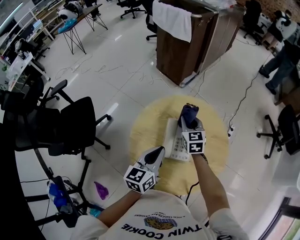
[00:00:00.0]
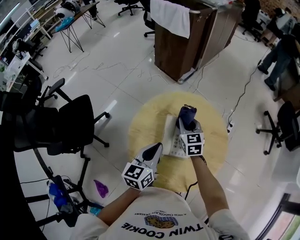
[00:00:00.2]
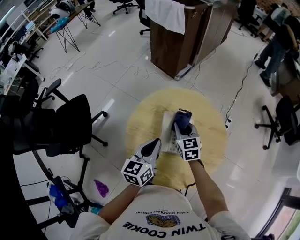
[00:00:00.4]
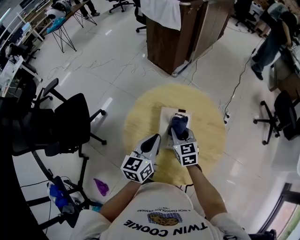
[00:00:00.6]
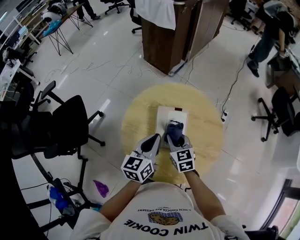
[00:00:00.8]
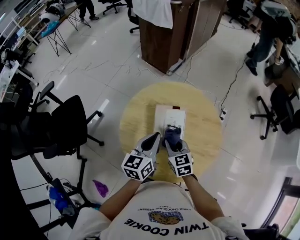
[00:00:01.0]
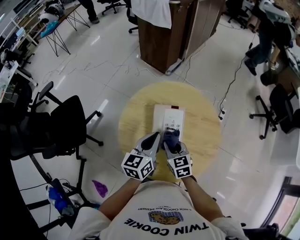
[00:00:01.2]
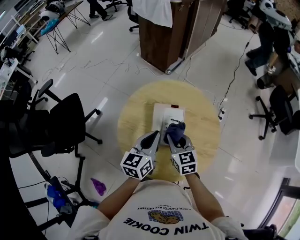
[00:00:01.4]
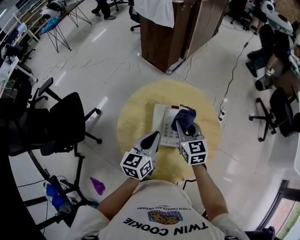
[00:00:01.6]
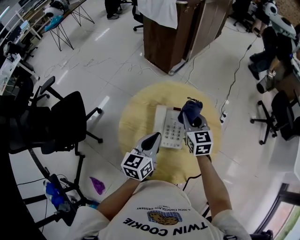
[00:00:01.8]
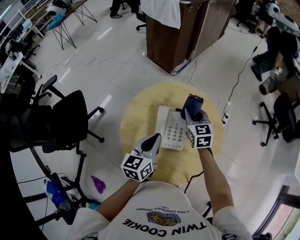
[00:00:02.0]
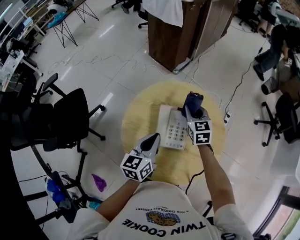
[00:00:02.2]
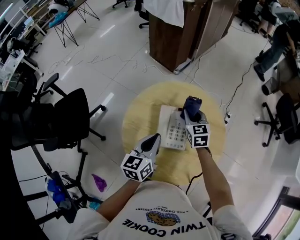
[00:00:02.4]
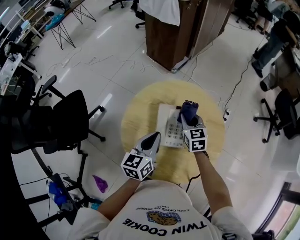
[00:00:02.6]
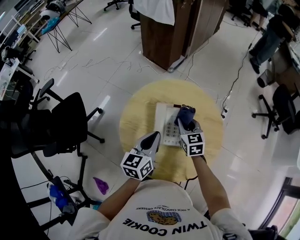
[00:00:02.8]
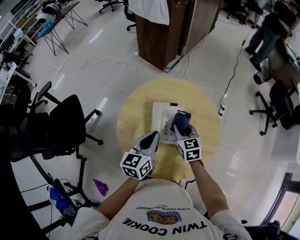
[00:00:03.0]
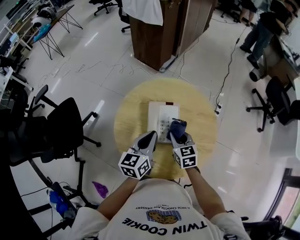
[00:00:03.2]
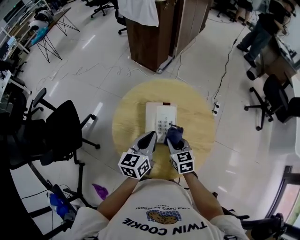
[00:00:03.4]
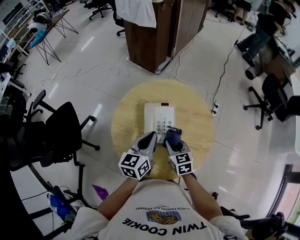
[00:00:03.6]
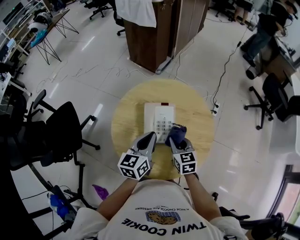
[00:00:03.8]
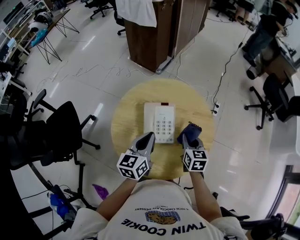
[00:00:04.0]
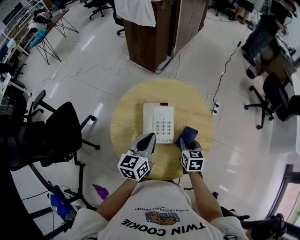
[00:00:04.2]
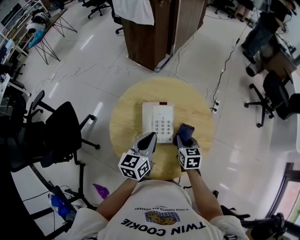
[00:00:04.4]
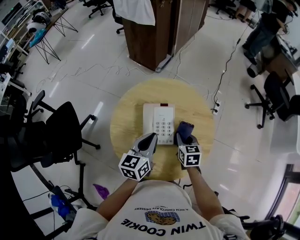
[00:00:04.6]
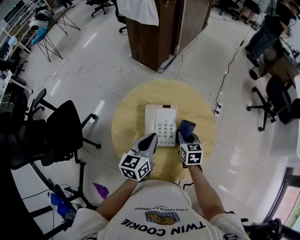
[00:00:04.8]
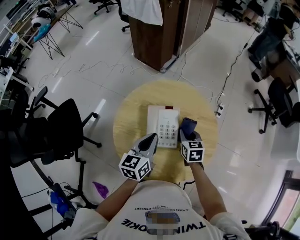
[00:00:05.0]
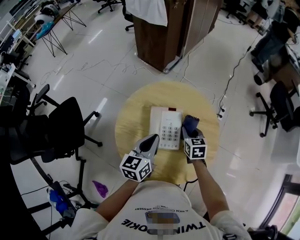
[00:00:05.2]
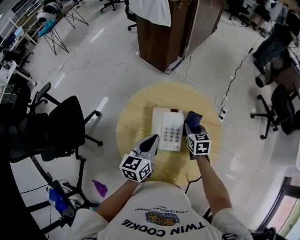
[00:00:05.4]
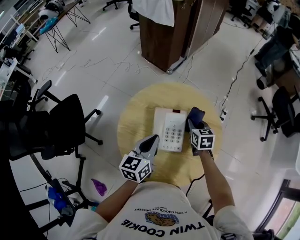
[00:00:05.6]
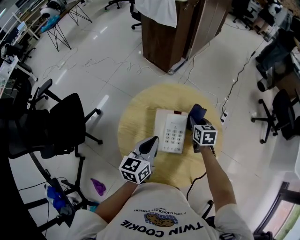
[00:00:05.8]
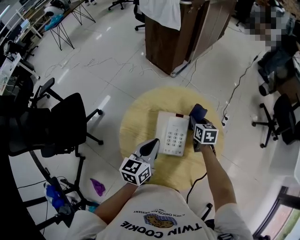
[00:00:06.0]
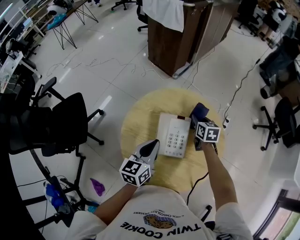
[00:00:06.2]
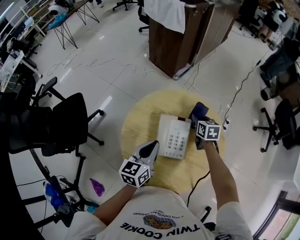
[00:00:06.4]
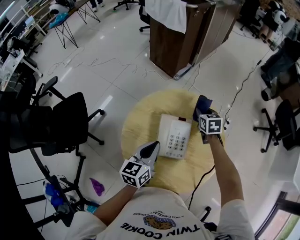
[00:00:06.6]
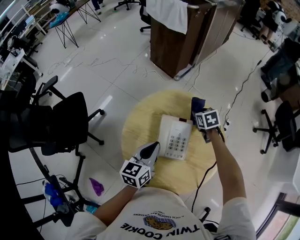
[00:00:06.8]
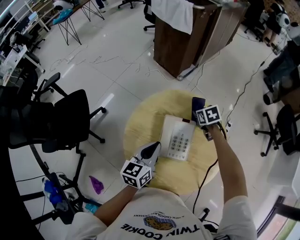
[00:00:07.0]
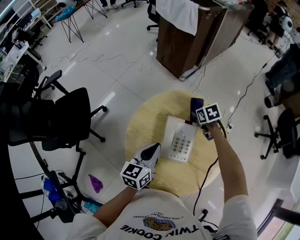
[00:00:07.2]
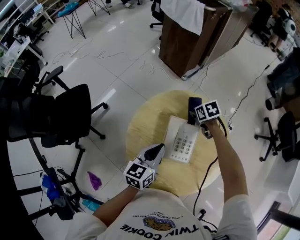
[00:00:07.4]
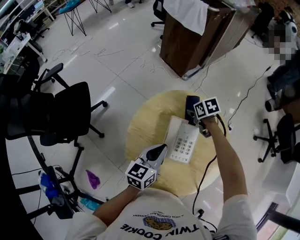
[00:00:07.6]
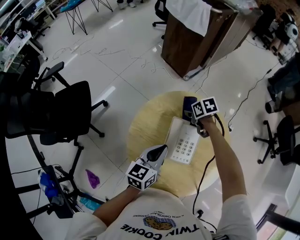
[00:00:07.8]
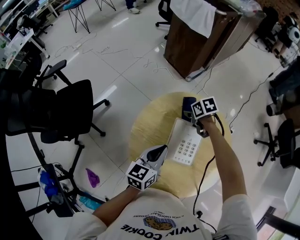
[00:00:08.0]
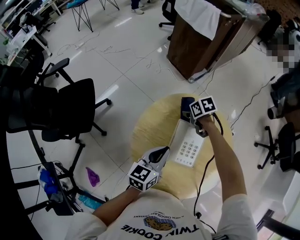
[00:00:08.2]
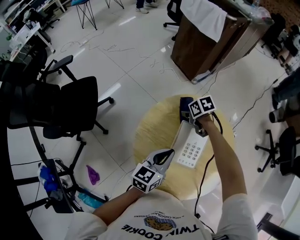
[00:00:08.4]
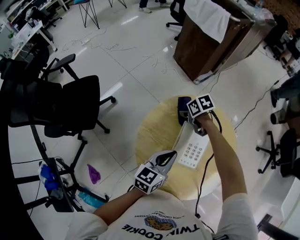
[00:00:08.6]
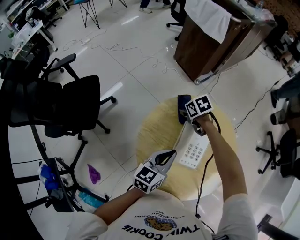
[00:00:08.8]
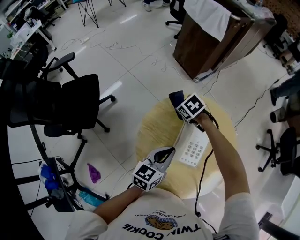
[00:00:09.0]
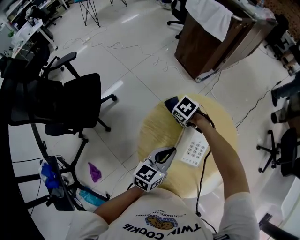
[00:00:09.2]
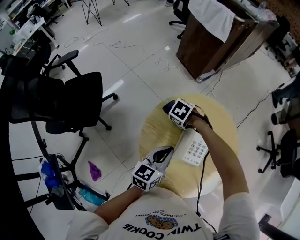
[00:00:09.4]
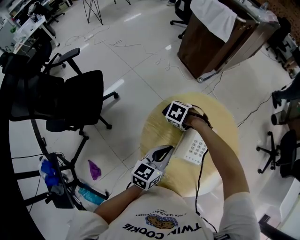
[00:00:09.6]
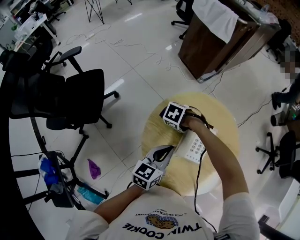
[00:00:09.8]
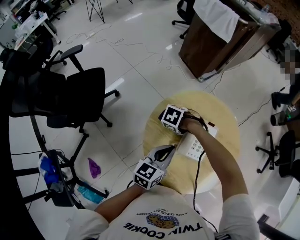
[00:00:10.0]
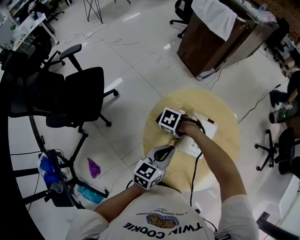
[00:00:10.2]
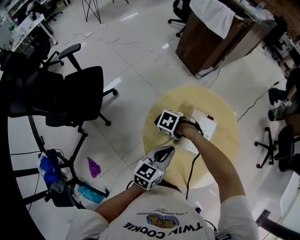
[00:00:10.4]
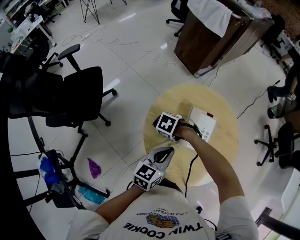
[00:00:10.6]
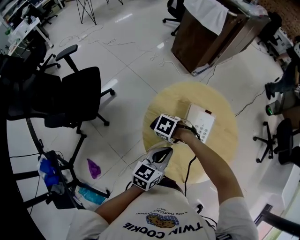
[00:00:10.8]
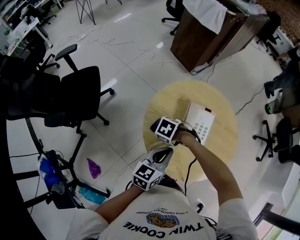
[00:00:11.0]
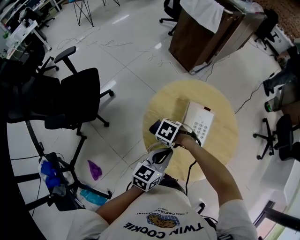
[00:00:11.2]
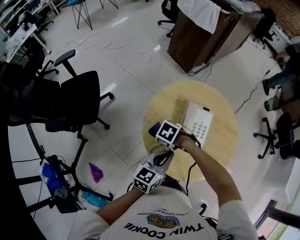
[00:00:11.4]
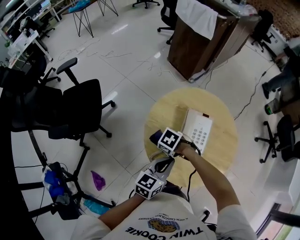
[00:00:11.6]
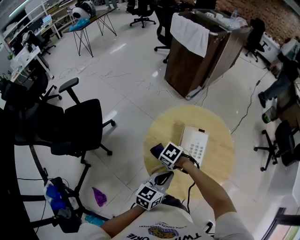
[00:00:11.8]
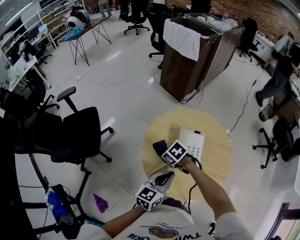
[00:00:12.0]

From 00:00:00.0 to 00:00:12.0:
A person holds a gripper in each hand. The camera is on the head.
From 00:00:00.0 to 00:00:01.6: The right gripper moves backward, roughly 10 cm.
From 00:00:01.6 to 00:00:03.0: The right gripper goes some 10 cm downward, and moves about 10 cm forward and comes back.
From 00:00:03.0 to 00:00:04.4: The right gripper shifts roughly 10 cm to the right and backward.
From 00:00:04.4 to 00:00:06.0: The right gripper moves forward, some 15 cm.
From 00:00:06.0 to 00:00:07.6: The right gripper shifts roughly 10 cm to the left and forward, and turns by roughly 40 degrees.
From 00:00:07.6 to 00:00:09.0: The right gripper goes roughly 15 cm to the left, and swivels about 30 degrees.
From 00:00:09.0 to 00:00:10.4: The left gripper shifts by approximately 5 cm; the right gripper shifts by some 20 cm, and turns by some 30 degrees.
From 00:00:10.4 to 00:00:12.0: The left gripper moves roughly 5 cm. The right gripper ends up some 5 cm from where it was, and turns by roughly 40 degrees.

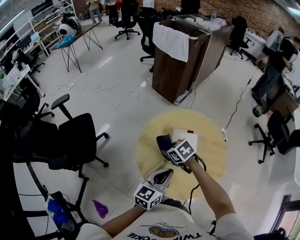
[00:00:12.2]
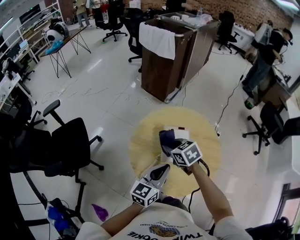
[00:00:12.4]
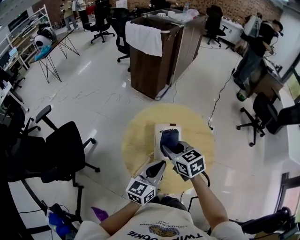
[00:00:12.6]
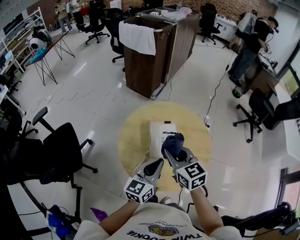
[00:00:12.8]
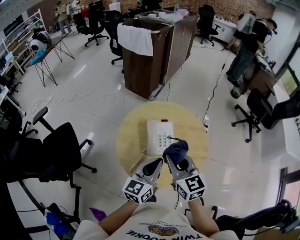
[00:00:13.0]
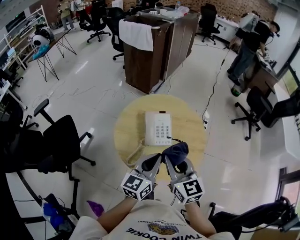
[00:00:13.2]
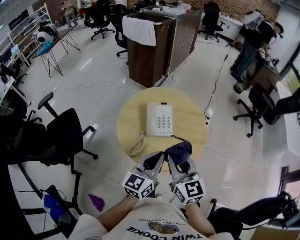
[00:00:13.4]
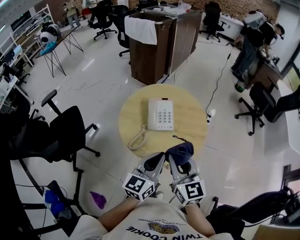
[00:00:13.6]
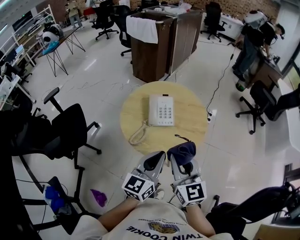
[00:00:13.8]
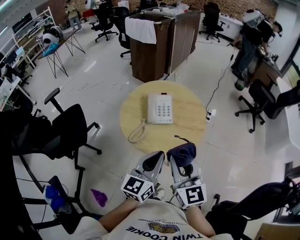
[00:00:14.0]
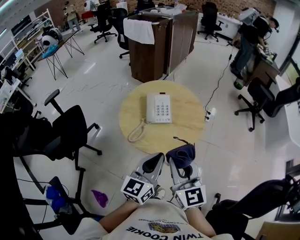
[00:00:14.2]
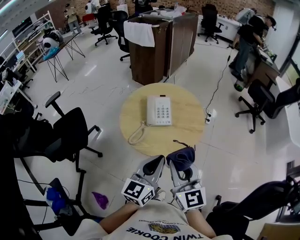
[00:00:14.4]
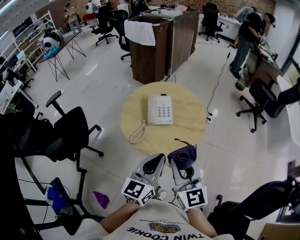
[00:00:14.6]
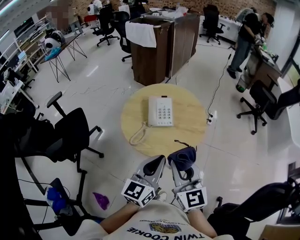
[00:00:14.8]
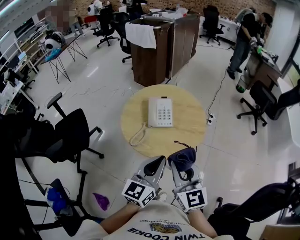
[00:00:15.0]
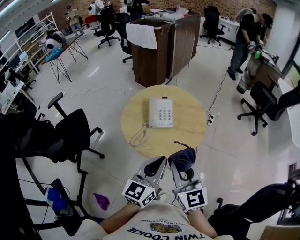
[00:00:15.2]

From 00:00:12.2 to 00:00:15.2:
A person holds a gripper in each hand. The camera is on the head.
From 00:00:12.2 to 00:00:13.8: The left gripper ends up roughly 20 cm from where it was, while the right gripper shifts by about 35 cm, and points its fingers approximately 50 degrees further upward.
From 00:00:13.8 to 00:00:15.2: The grippers stay close to where they were, moving slightly.

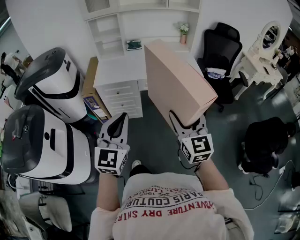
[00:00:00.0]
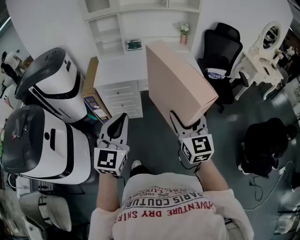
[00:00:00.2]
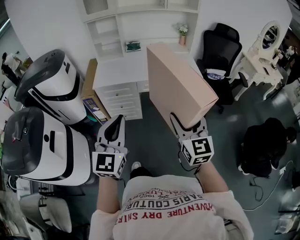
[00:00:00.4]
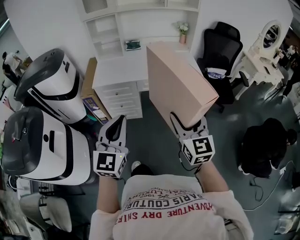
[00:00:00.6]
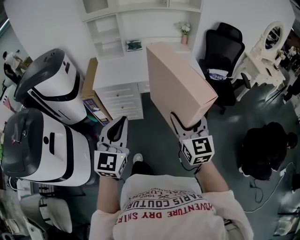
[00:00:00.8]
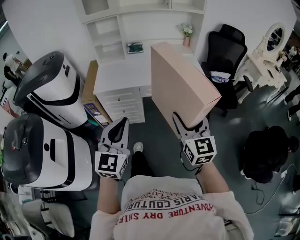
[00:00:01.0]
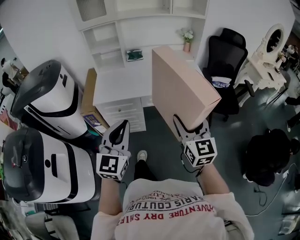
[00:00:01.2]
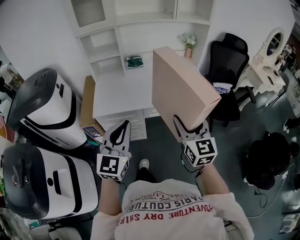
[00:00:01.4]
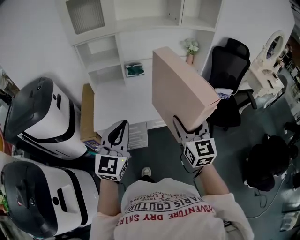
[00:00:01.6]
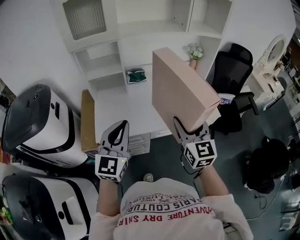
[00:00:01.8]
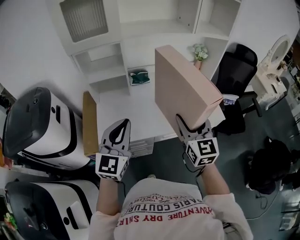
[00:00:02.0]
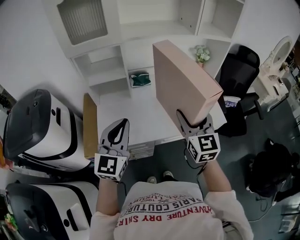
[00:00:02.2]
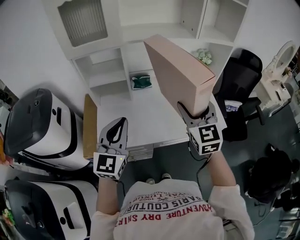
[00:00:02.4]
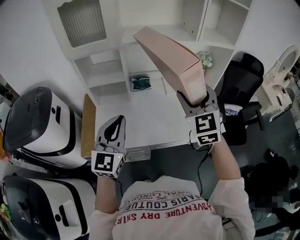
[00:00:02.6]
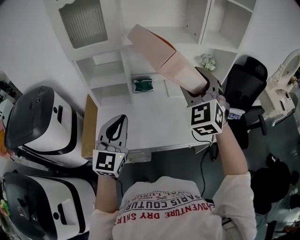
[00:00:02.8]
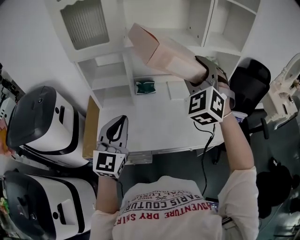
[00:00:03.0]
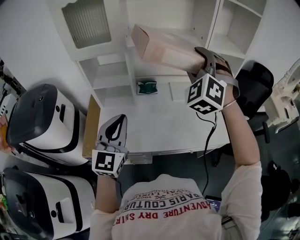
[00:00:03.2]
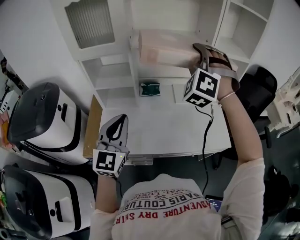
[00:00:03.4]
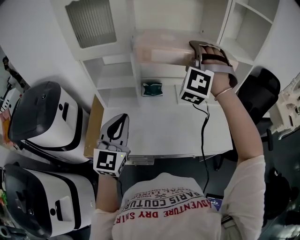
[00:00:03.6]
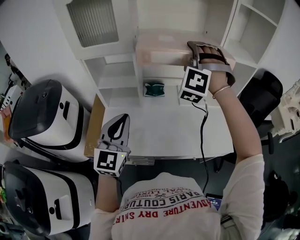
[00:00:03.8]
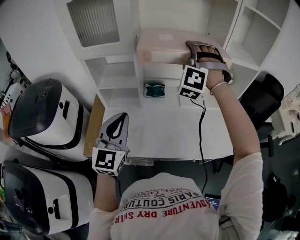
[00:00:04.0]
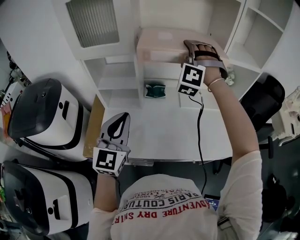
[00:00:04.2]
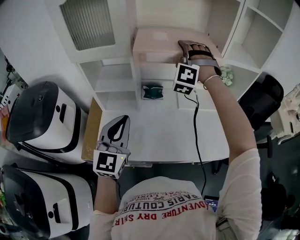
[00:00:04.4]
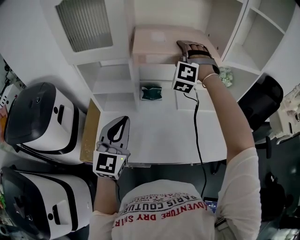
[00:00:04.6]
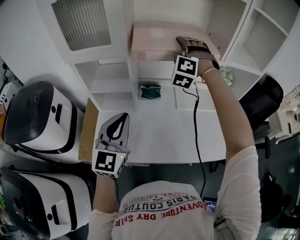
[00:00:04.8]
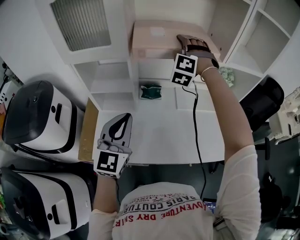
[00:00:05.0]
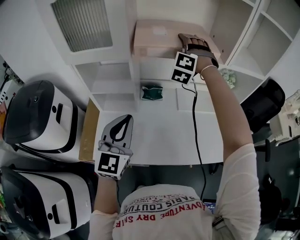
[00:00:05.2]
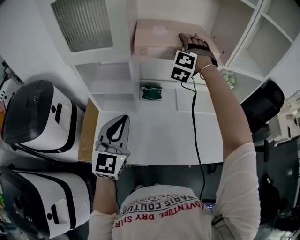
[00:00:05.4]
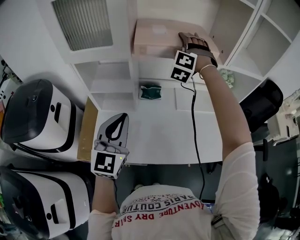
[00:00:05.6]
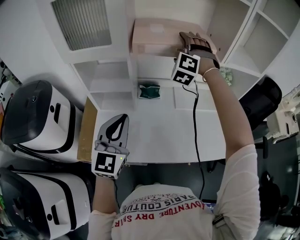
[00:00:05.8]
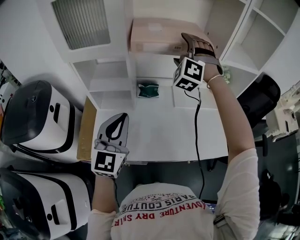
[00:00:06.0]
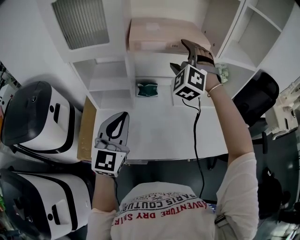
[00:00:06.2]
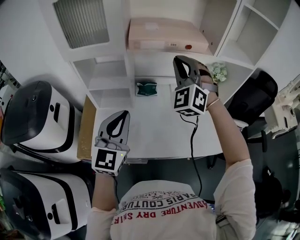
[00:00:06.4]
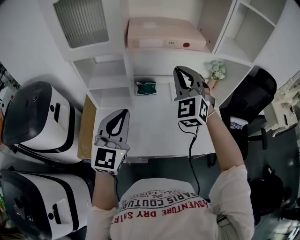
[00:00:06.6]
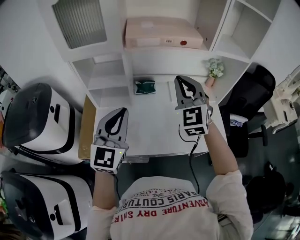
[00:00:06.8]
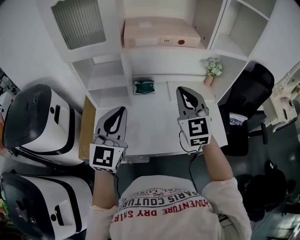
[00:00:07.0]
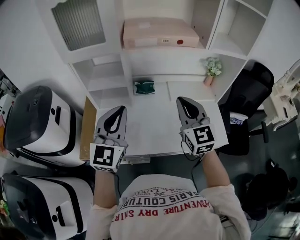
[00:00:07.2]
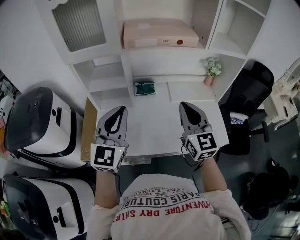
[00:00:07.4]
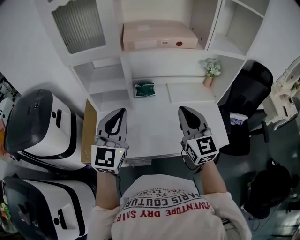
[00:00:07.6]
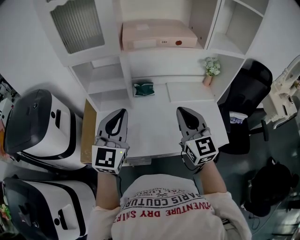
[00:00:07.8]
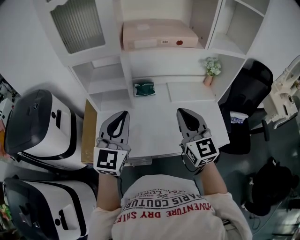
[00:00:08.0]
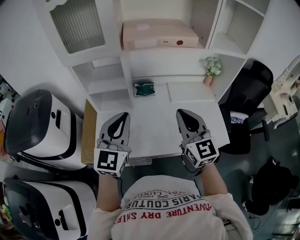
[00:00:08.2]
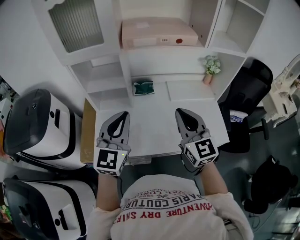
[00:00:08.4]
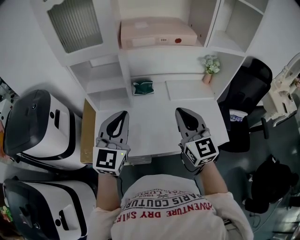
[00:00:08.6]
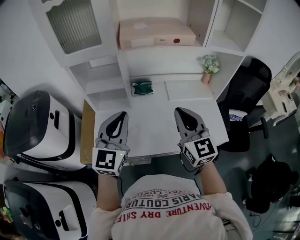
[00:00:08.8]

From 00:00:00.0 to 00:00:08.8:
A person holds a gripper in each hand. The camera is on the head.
From 00:00:00.0 to 00:00:01.4: The two grippers go roughly 20 cm forward.
From 00:00:01.4 to 00:00:03.0: The left gripper goes roughly 25 cm forward. Meanwhile the right gripper shifts some 40 cm forward and upward, and rolls counterclockwise, seen from behind, by some 60 degrees.
From 00:00:03.0 to 00:00:04.4: The right gripper is displaced forward and to the left by some 20 cm, and turns by about 30 degrees. Meanwhile the left gripper moves forward, roughly 5 cm.
From 00:00:04.4 to 00:00:05.8: The right gripper shifts about 5 cm forward.
From 00:00:05.8 to 00:00:07.4: The left gripper moves roughly 5 cm. Meanwhile the right gripper moves backward, about 30 cm, twists approximately 80 degrees clockwise, seen from behind, and closes.
From 00:00:07.4 to 00:00:08.8: There are only small adjustments of the grippers.
